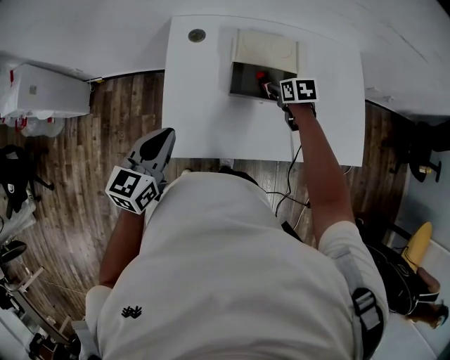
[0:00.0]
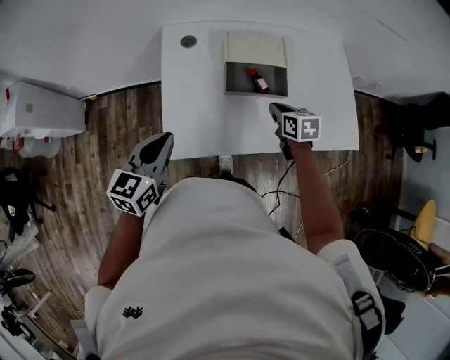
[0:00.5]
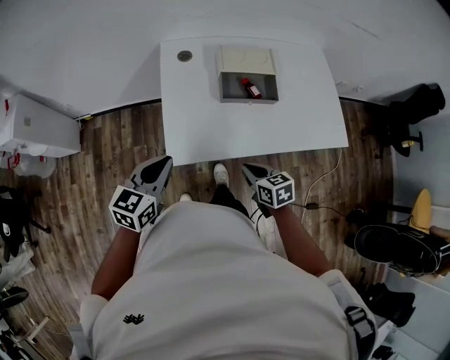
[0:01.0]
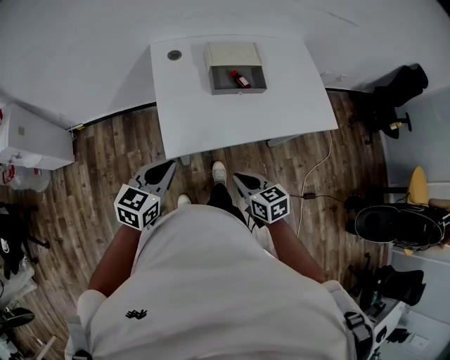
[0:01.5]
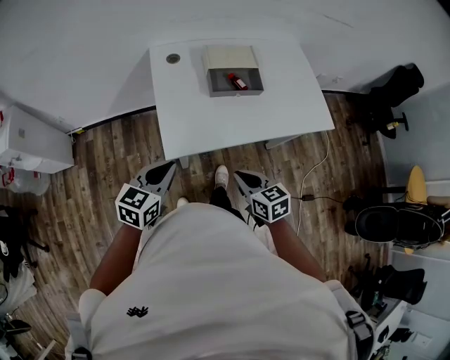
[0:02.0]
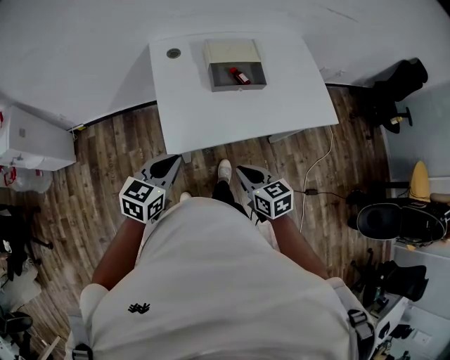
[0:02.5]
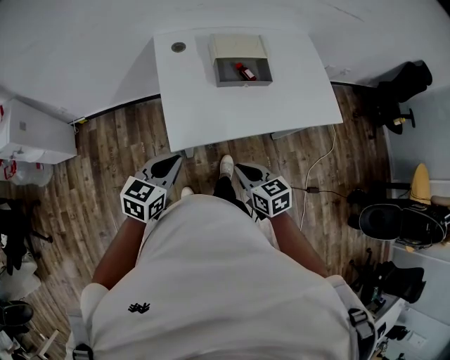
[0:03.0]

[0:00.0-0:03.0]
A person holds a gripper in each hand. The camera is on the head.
0:00.0 to 0:01.5: The right gripper is displaced backward by some 40 cm, changes its angle by approximately 20 degrees, and closes up, while the left gripper is displaced backward by some 15 cm.
0:01.5 to 0:03.0: The grippers make only small movements.

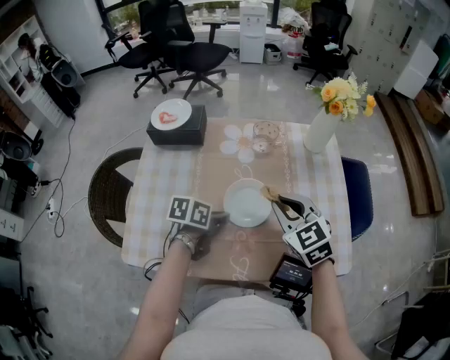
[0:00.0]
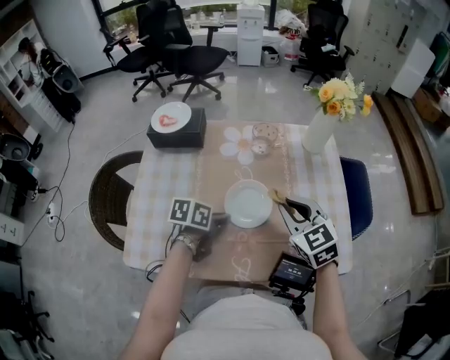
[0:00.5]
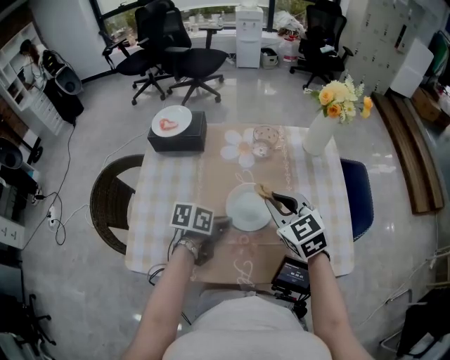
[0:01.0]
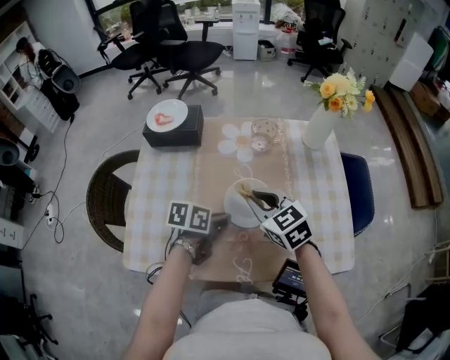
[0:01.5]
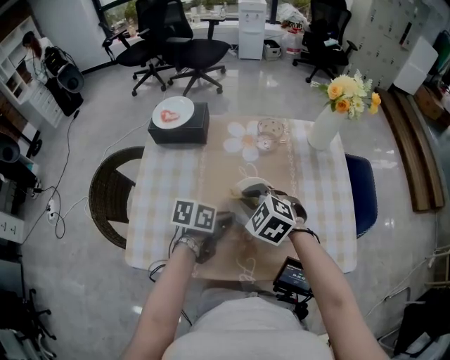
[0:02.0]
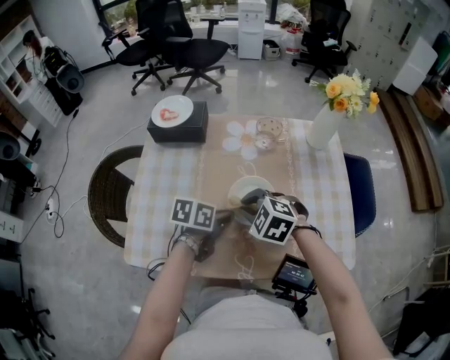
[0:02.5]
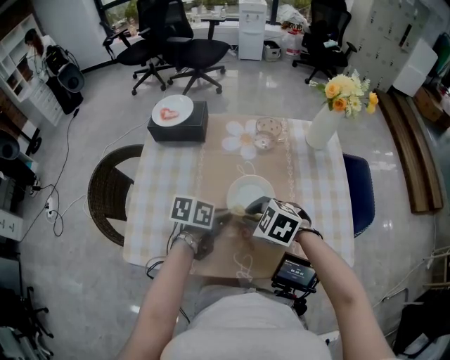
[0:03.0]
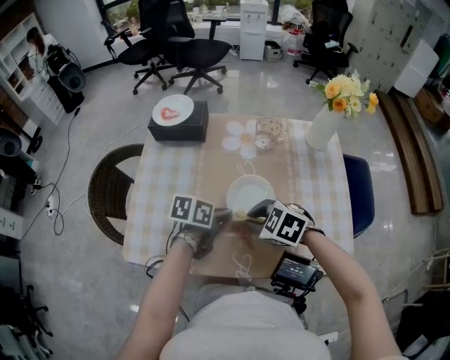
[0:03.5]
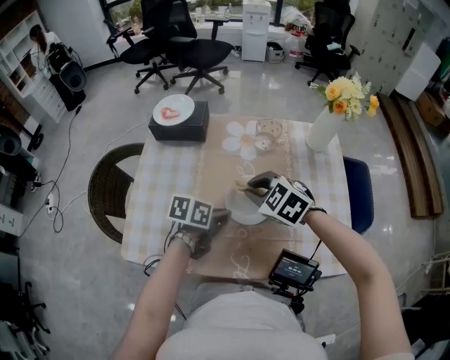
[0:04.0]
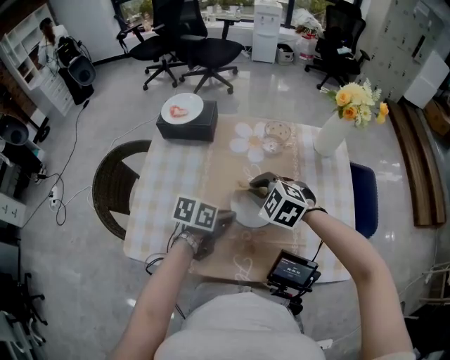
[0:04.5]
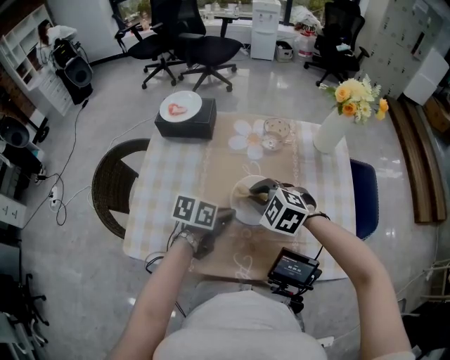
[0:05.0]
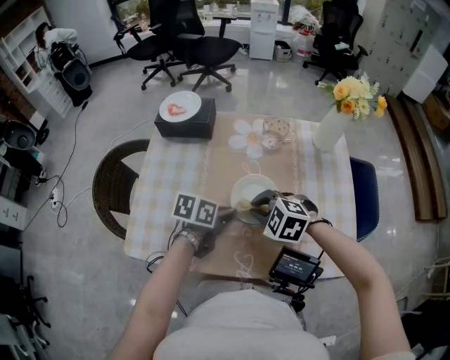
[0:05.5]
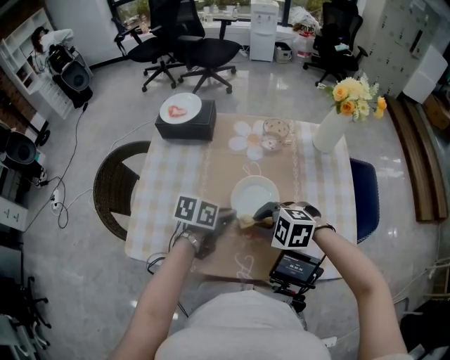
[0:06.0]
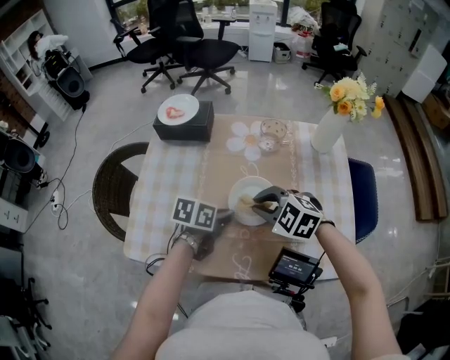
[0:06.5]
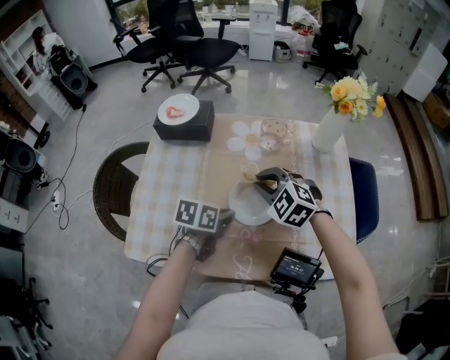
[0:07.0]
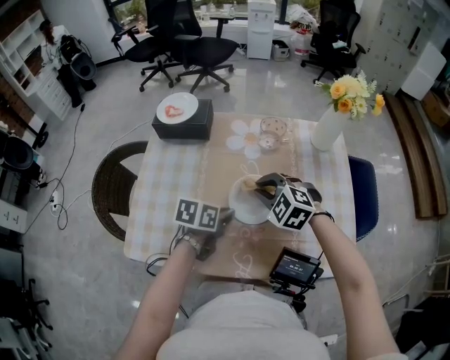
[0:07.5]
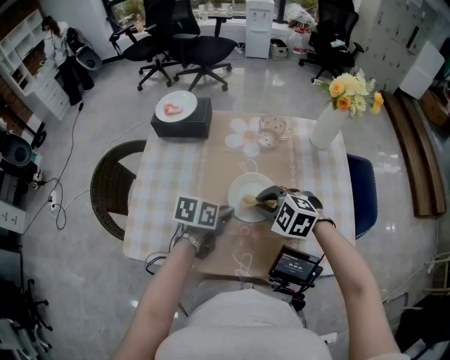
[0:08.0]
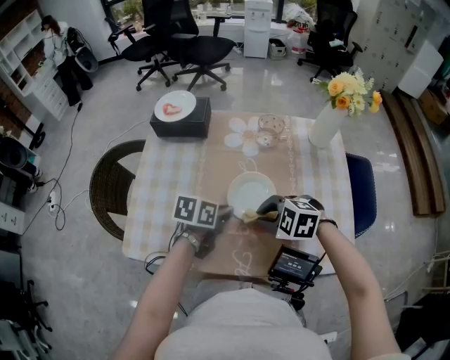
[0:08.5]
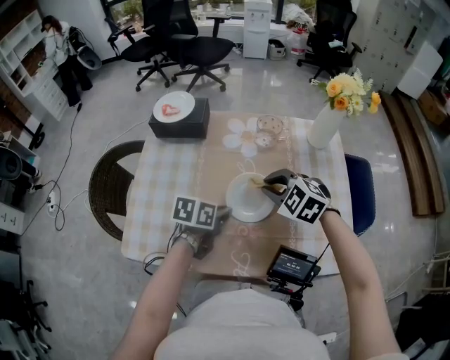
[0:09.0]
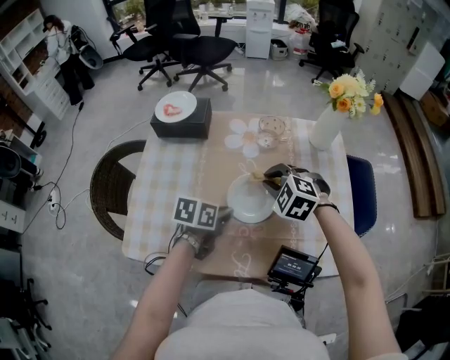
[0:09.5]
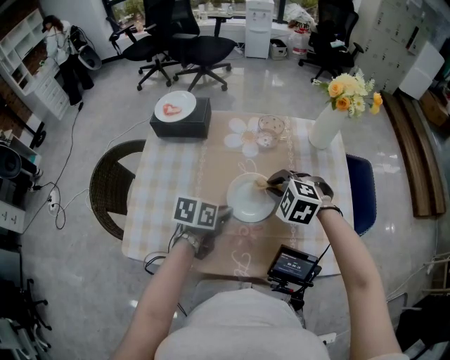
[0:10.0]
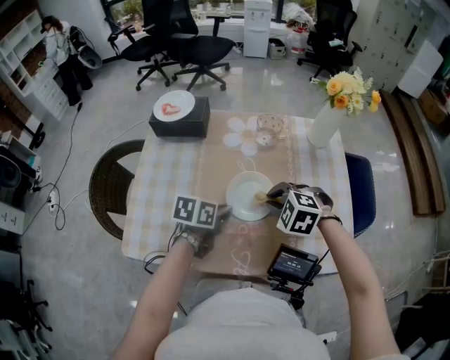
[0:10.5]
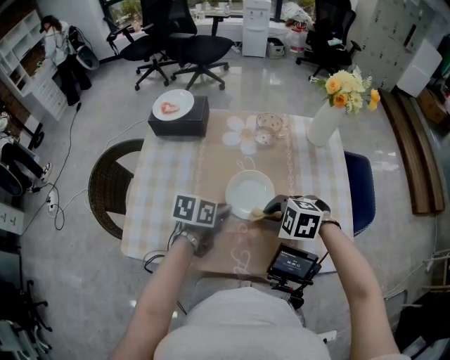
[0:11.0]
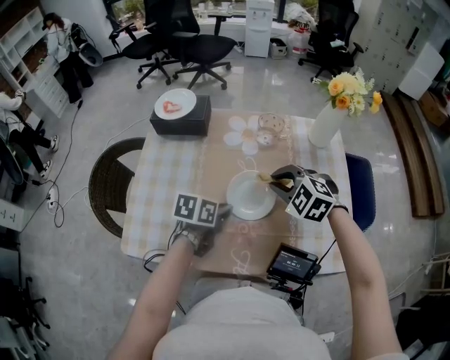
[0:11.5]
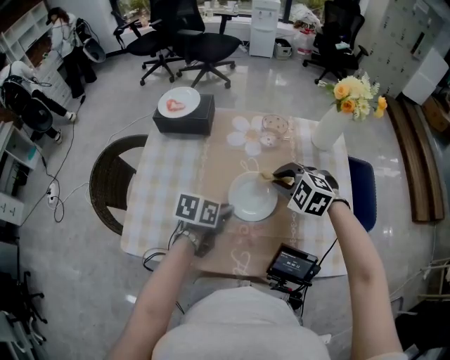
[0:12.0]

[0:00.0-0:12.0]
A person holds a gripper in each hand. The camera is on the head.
0:00.0 to 0:02.0: The right gripper travels to the left and downward by about 15 cm, and turns by roughly 30 degrees.
0:04.0 to 0:06.0: The right gripper changes place by about 10 cm, and swivels about 20 degrees.
0:08.0 to 0:10.0: The right gripper ends up about 5 cm from where it was.

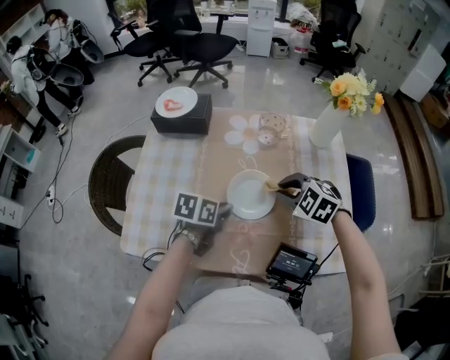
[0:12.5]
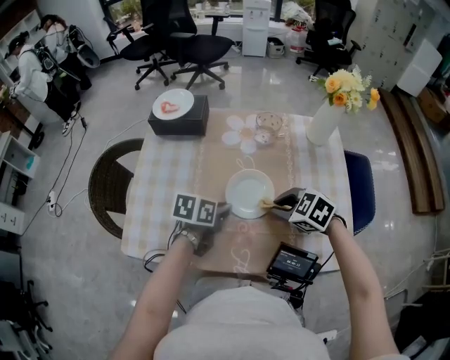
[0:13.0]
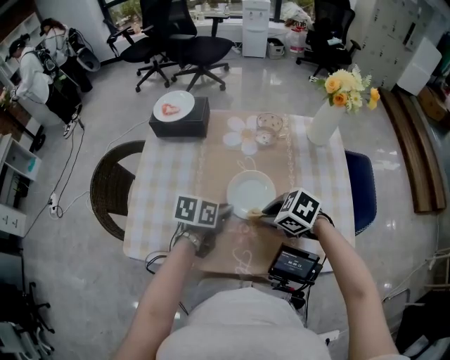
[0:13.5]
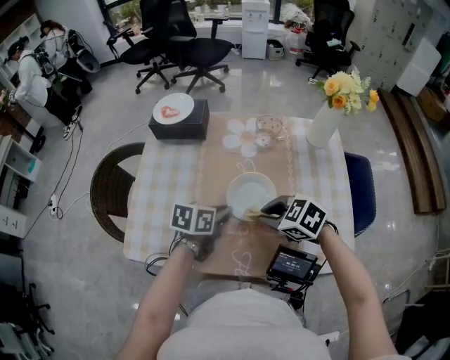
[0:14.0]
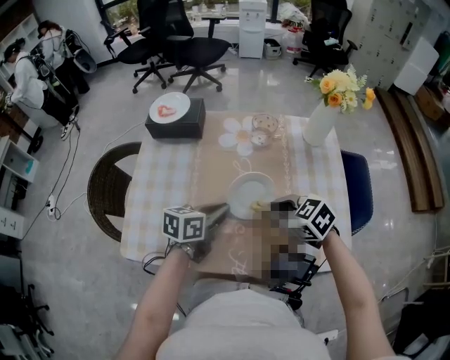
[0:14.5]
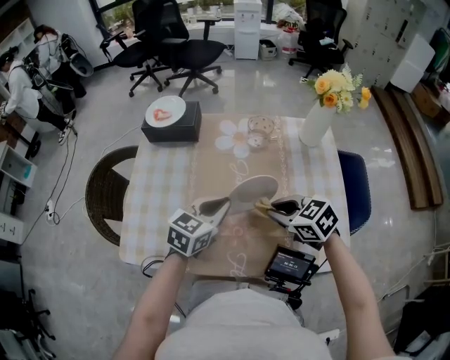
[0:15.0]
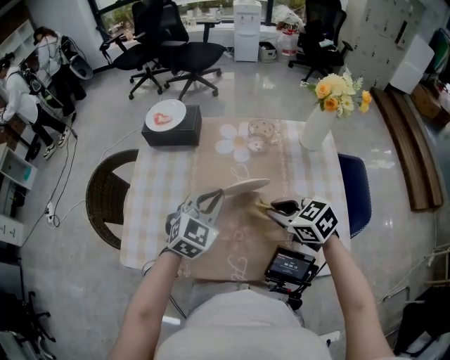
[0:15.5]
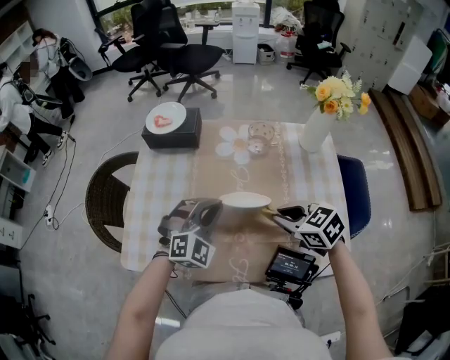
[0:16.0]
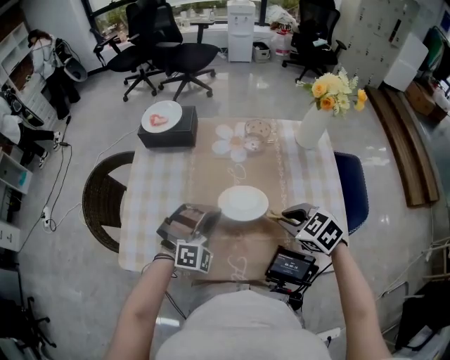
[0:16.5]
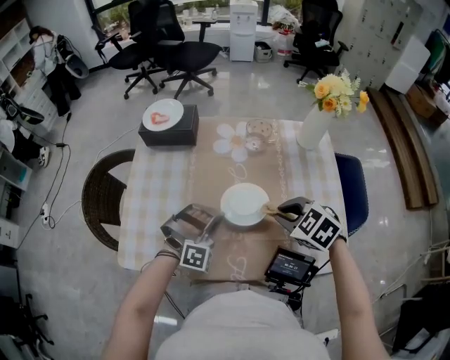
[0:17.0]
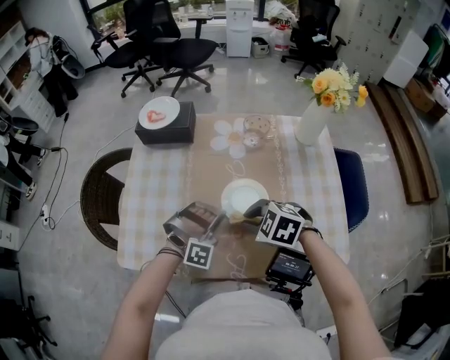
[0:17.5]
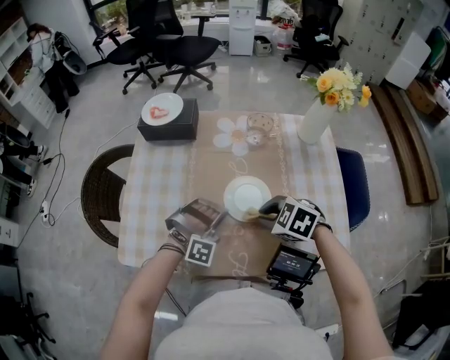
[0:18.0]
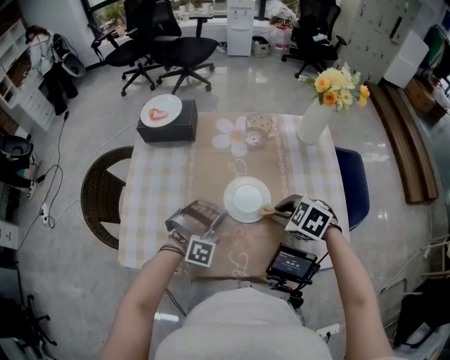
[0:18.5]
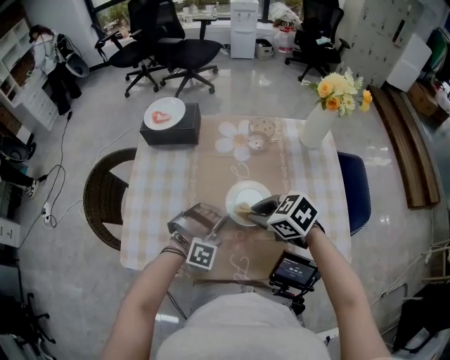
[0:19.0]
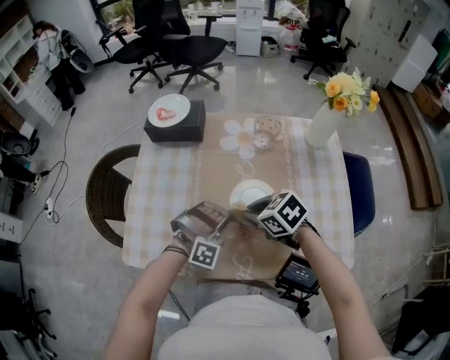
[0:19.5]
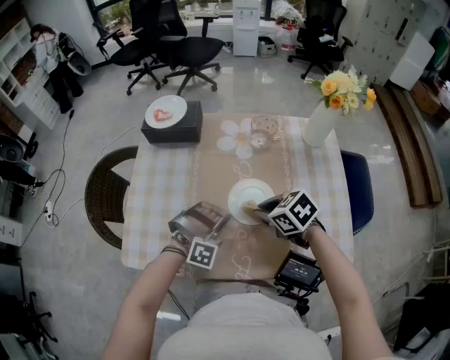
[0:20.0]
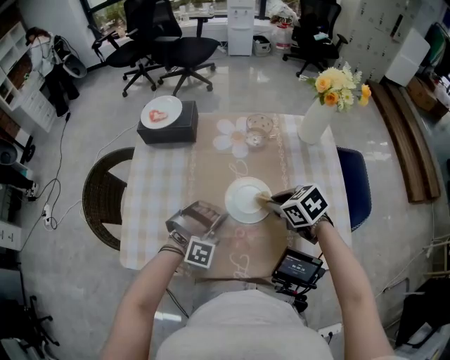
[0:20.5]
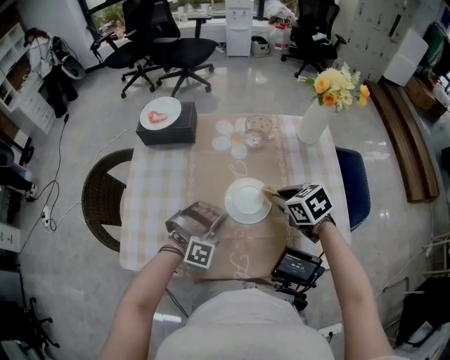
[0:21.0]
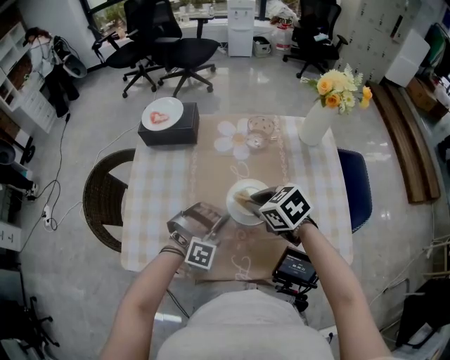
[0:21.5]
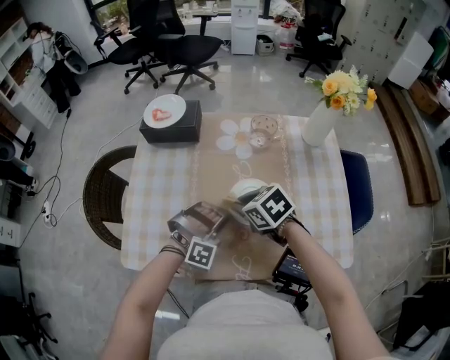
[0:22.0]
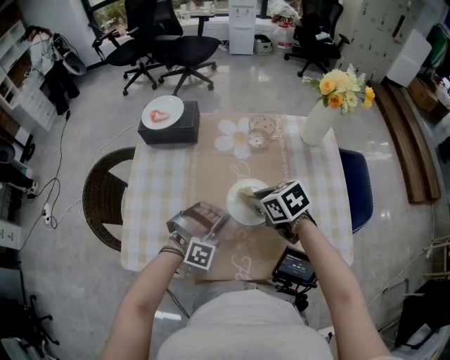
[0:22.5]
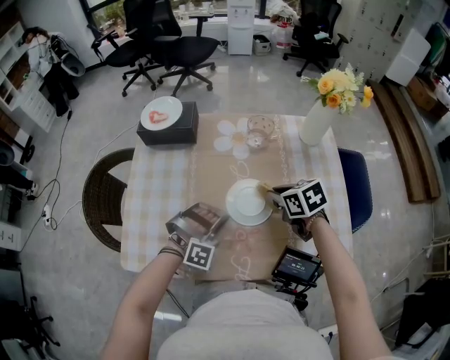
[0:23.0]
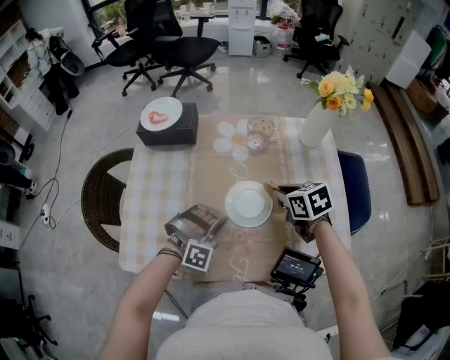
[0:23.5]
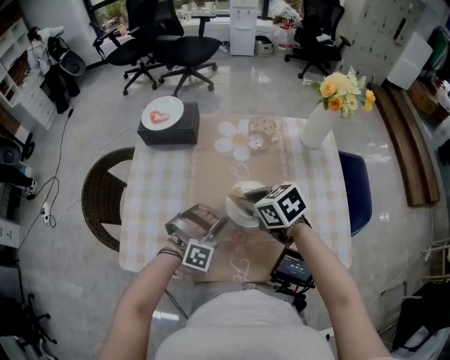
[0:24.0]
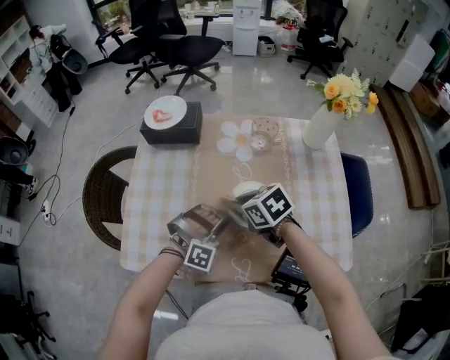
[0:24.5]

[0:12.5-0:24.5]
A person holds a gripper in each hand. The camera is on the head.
0:12.5 to 0:14.5: The right gripper ends up approximately 5 cm from where it was, and swivels about 30 degrees.
0:14.5 to 0:16.5: The left gripper rotates around the line of its fingers by some 100 degrees, clockwise from behind. The right gripper travels to the right by roughly 5 cm.
0:16.5 to 0:18.5: The left gripper moves downward, some 5 cm, and swivels approximately 20 degrees. Meanwhile the right gripper travels to the left and back again, approximately 10 cm each way.
0:18.5 to 0:20.5: The right gripper goes to the left and returns, some 10 cm each way, and swivels about 30 degrees.
0:20.5 to 0:22.5: The right gripper moves to the left, roughly 5 cm.
0:22.5 to 0:24.5: The right gripper is displaced to the left by approximately 5 cm.
